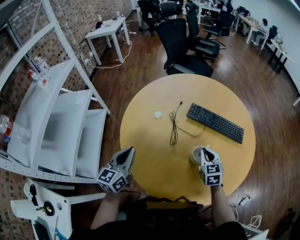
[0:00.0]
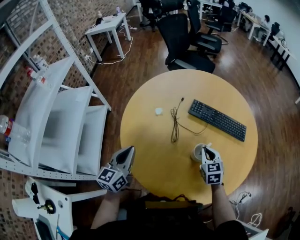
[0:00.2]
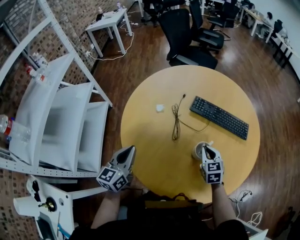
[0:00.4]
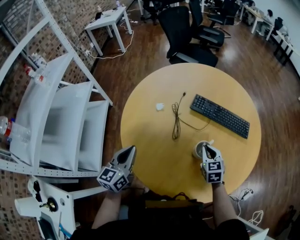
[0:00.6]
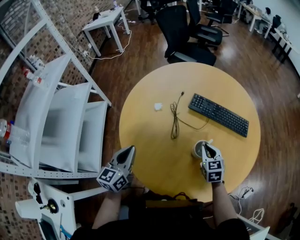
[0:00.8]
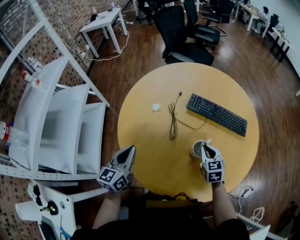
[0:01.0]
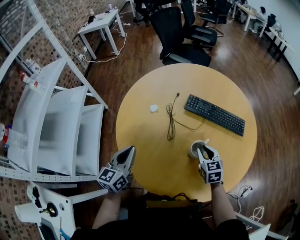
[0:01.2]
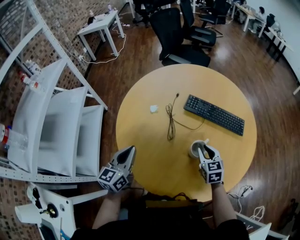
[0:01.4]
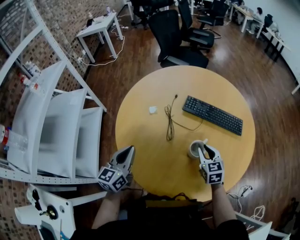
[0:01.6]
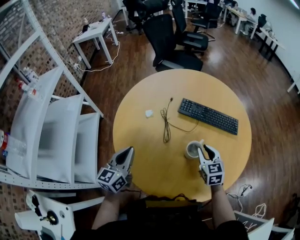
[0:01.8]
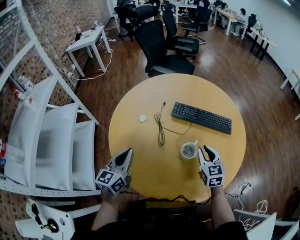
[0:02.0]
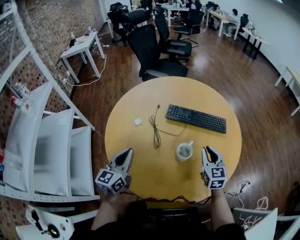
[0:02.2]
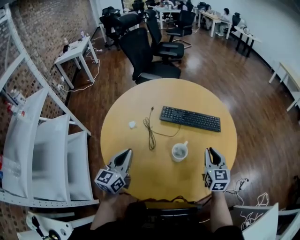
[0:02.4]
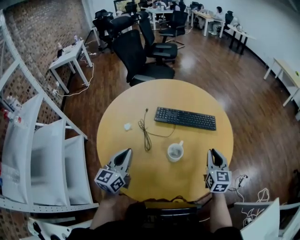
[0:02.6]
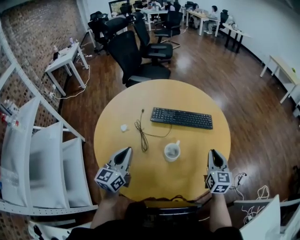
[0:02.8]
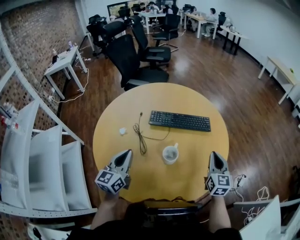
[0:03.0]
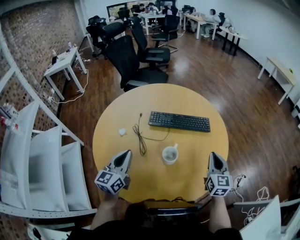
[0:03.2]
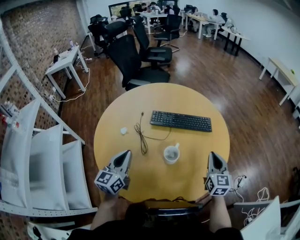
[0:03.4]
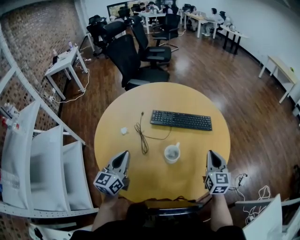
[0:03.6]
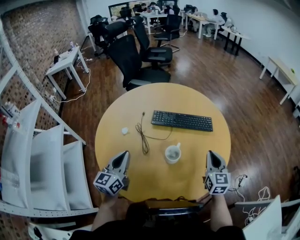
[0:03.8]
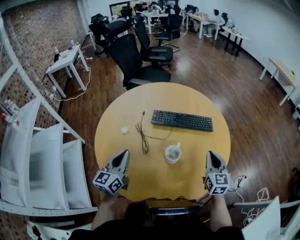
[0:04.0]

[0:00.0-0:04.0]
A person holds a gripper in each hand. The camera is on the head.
0:00.0 to 0:01.4: The right gripper opens up.
0:01.4 to 0:02.6: The left gripper goes about 5 cm to the right, while the right gripper travels to the right and upward by roughly 20 cm, and rotates roughly 30 degrees.
0:02.6 to 0:04.0: There are only small adjustments of the grippers.

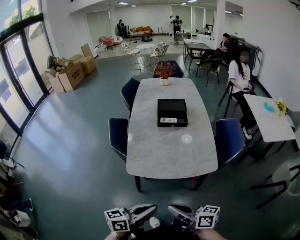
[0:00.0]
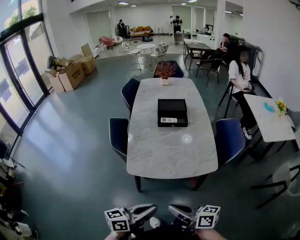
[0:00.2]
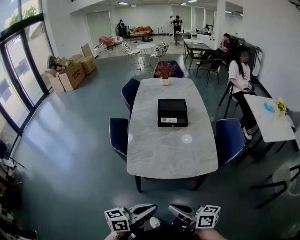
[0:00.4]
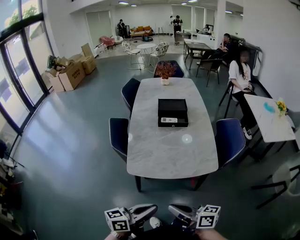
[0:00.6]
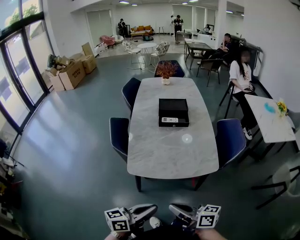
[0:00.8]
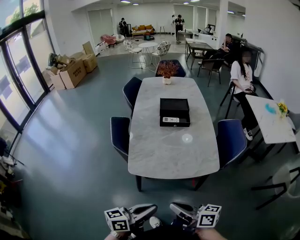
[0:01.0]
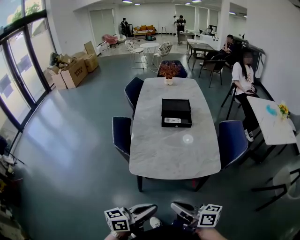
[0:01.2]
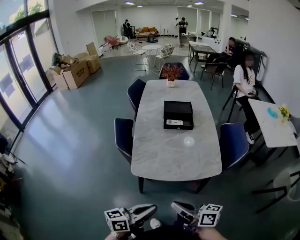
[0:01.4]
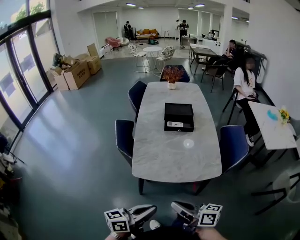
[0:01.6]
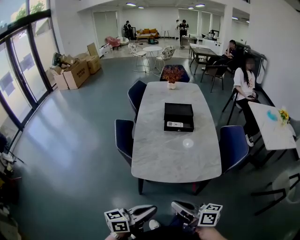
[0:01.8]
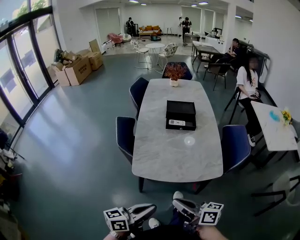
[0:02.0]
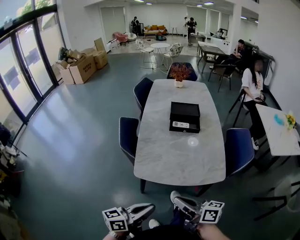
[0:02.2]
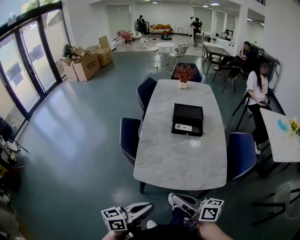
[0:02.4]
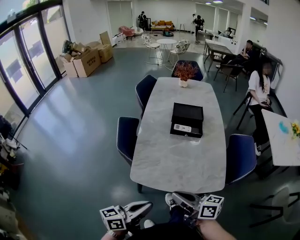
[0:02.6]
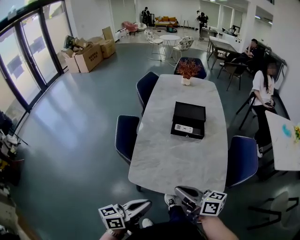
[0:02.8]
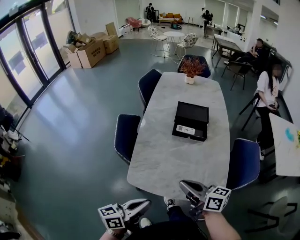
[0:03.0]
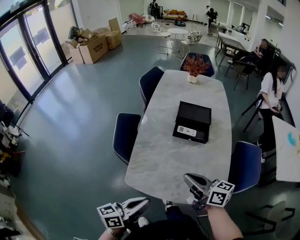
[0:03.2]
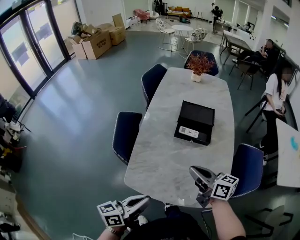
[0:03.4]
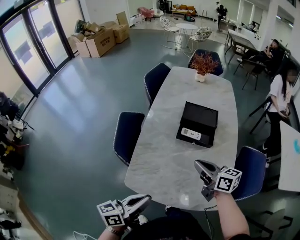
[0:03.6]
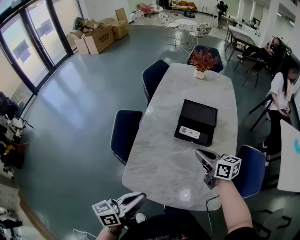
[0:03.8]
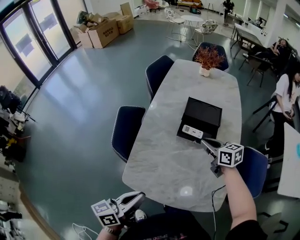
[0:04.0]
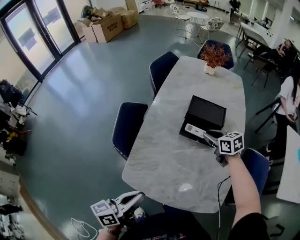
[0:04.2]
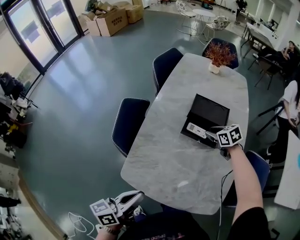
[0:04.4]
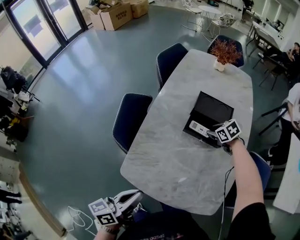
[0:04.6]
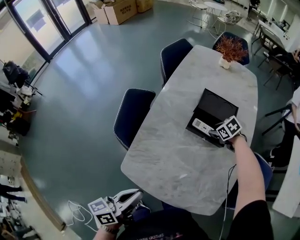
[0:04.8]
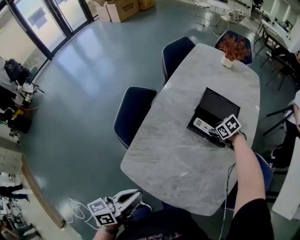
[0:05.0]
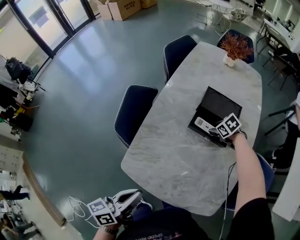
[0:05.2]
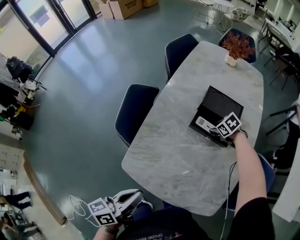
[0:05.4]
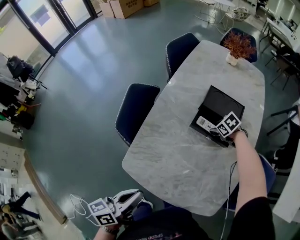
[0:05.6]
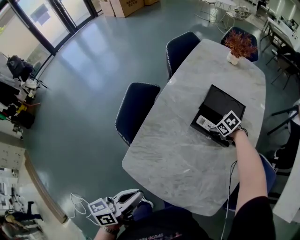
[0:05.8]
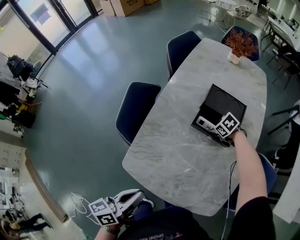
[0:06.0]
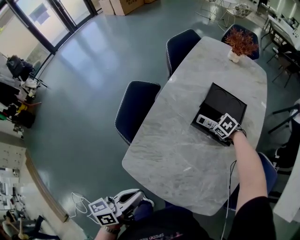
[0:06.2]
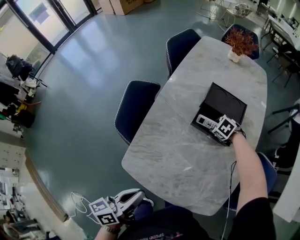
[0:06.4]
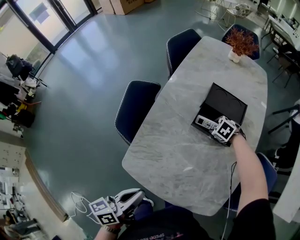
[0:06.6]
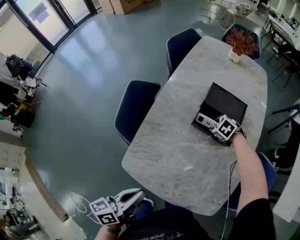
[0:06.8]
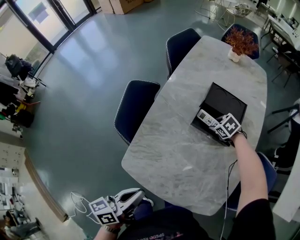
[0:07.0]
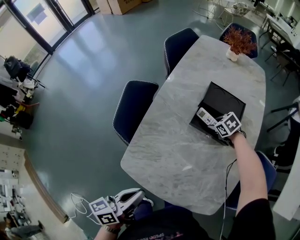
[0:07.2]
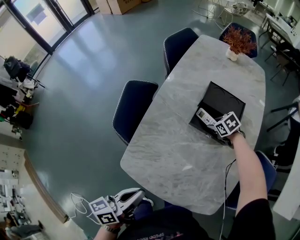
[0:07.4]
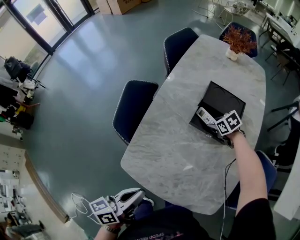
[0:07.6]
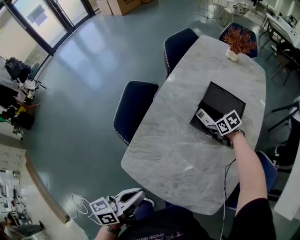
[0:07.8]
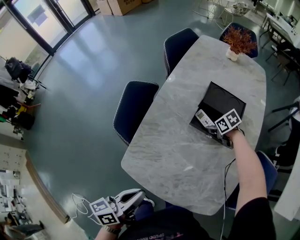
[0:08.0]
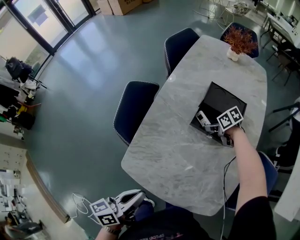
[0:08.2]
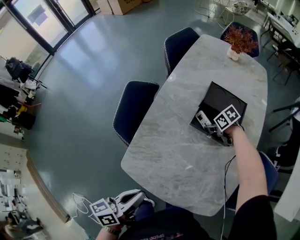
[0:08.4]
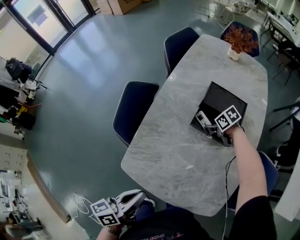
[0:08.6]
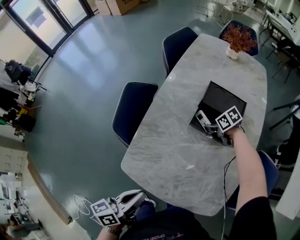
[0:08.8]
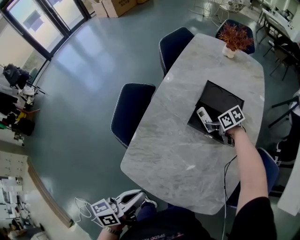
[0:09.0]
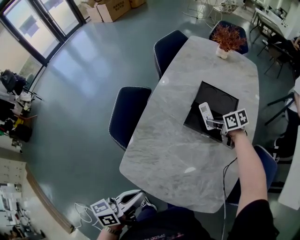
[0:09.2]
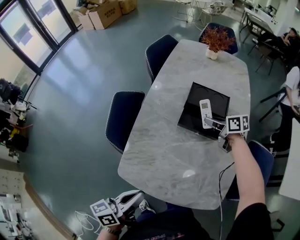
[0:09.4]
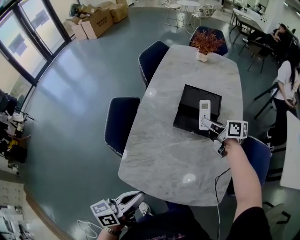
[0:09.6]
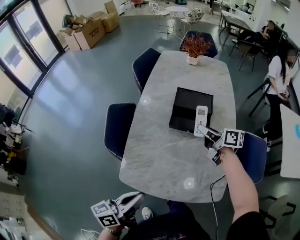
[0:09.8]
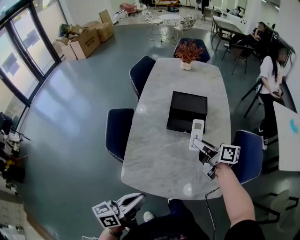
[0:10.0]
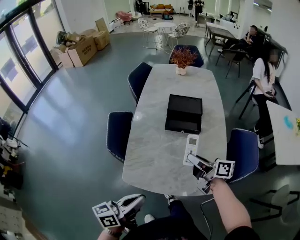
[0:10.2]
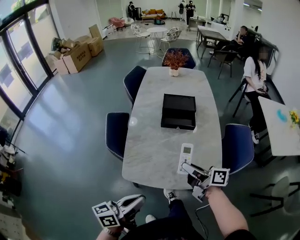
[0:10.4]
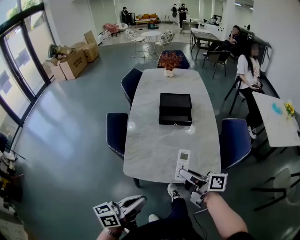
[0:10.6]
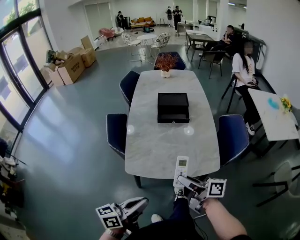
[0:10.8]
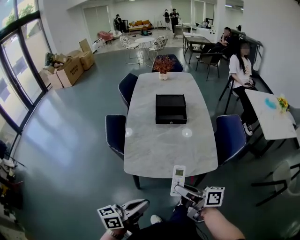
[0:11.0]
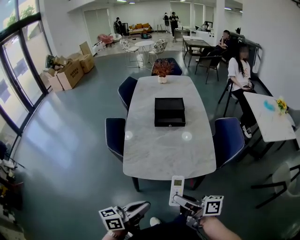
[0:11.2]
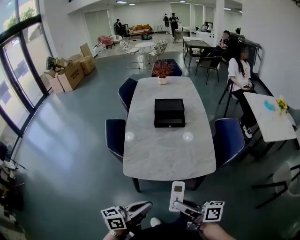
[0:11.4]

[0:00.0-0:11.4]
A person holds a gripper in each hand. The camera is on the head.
0:00.0 to 0:01.4: There are only small adjustments of the grippers.
0:01.4 to 0:02.8: Both grippers move forward, roughly 15 cm.
0:02.8 to 0:04.2: The left gripper is displaced forward by approximately 10 cm. Meanwhile the right gripper shifts roughly 40 cm forward and to the right, and tips its fingers downward by roughly 30 degrees.
0:04.2 to 0:05.6: The right gripper shifts roughly 15 cm downward, points its fingers roughly 30 degrees further downward, and opens up.
0:07.2 to 0:08.6: The right gripper changes its angle by about 20 degrees.
0:08.6 to 0:10.0: The left gripper shifts by approximately 5 cm, and swivels some 20 degrees; the right gripper shifts roughly 25 cm upward, and tilts its fingers approximately 50 degrees upward.
0:10.0 to 0:11.4: The right gripper moves backward, some 40 cm. The left gripper is displaced backward by approximately 20 cm.

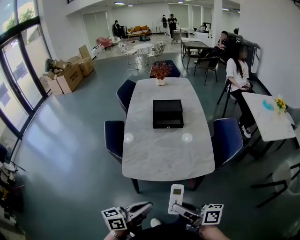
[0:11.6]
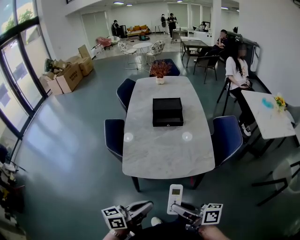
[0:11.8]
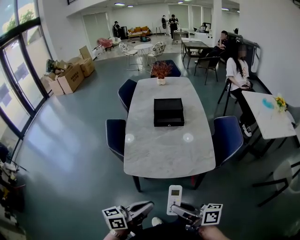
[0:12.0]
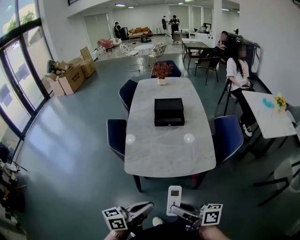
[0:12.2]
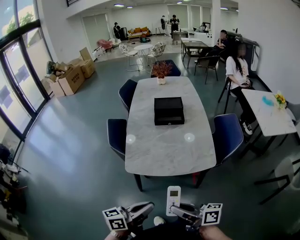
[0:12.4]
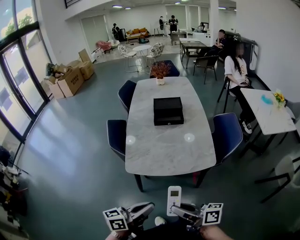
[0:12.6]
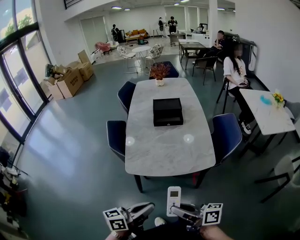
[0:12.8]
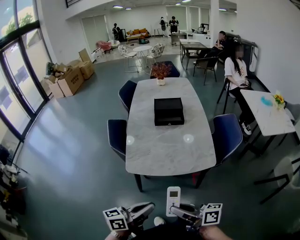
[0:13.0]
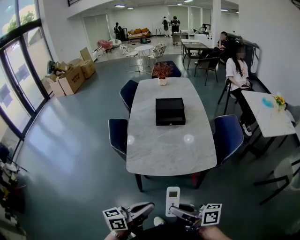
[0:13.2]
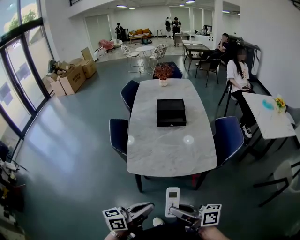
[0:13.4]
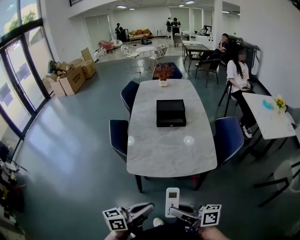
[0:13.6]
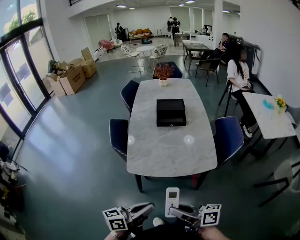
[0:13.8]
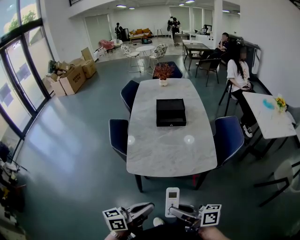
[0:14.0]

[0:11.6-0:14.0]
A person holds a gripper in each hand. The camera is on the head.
0:11.6 to 0:14.0: The grippers move only a little.

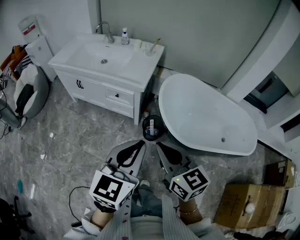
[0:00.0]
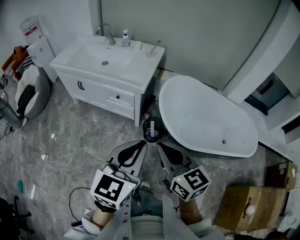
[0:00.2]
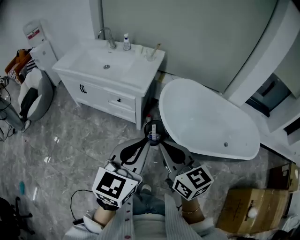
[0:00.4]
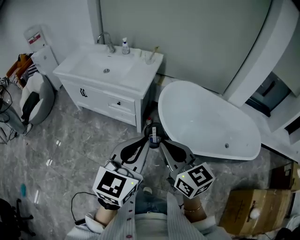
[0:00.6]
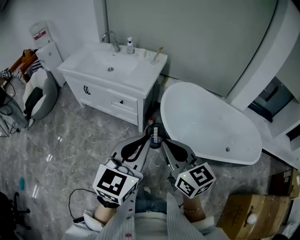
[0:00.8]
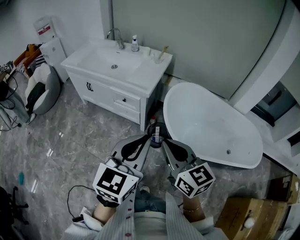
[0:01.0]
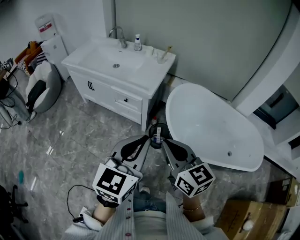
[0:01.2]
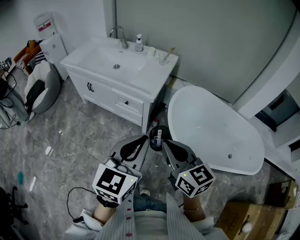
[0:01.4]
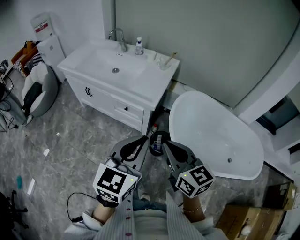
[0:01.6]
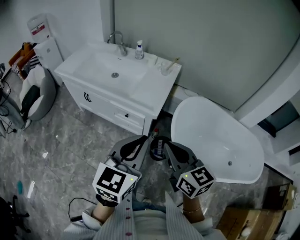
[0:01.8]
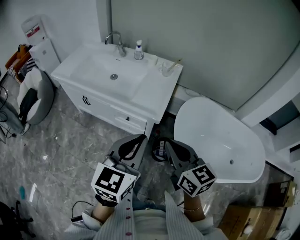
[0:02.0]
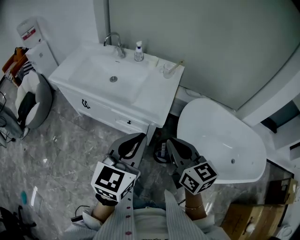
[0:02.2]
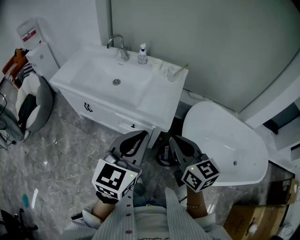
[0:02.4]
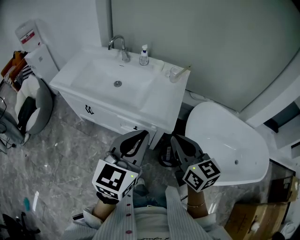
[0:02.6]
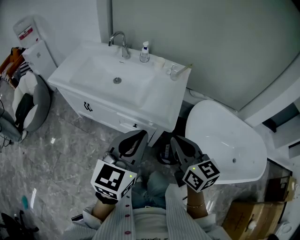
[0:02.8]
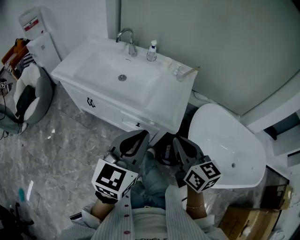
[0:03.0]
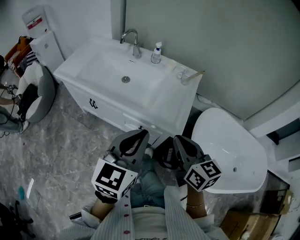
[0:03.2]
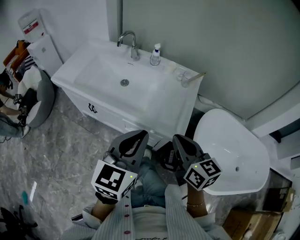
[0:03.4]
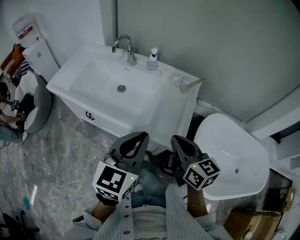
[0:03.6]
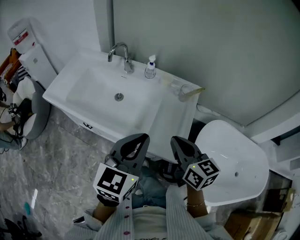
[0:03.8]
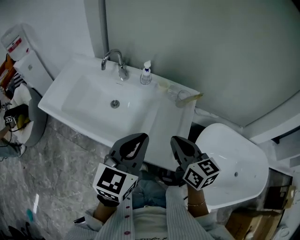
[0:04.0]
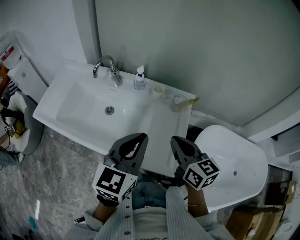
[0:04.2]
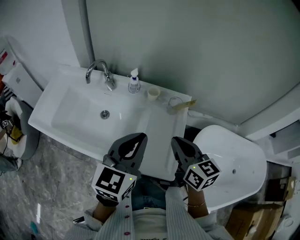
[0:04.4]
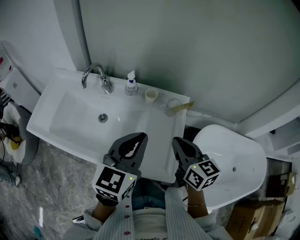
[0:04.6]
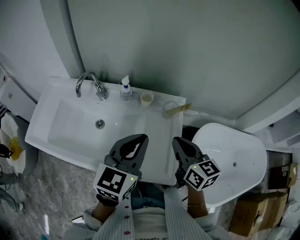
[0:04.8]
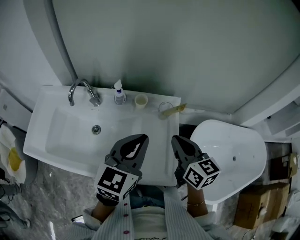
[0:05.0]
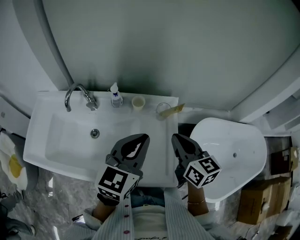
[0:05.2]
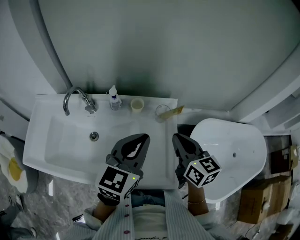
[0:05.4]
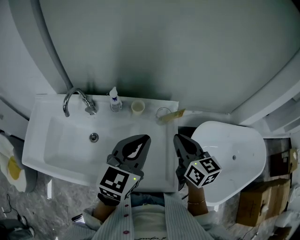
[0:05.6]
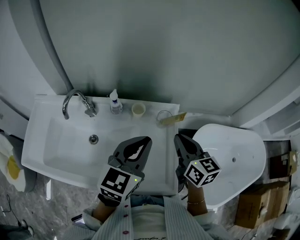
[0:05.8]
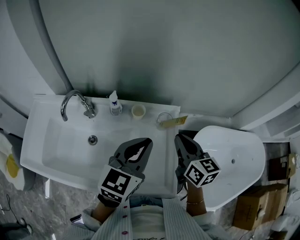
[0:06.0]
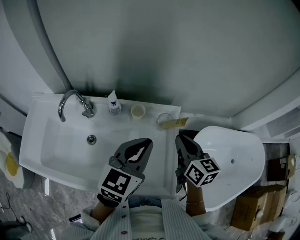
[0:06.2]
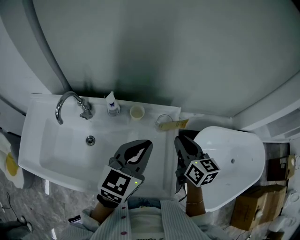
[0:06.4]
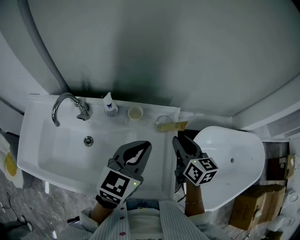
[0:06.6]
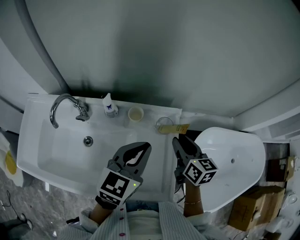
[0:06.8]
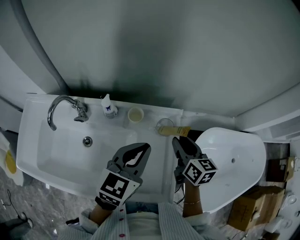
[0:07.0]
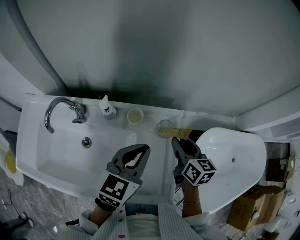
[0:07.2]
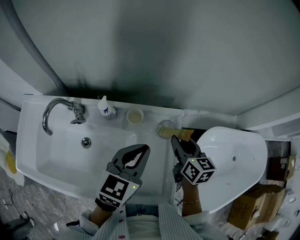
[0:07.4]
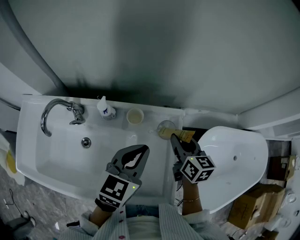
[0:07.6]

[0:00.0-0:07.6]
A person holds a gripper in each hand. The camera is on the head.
0:00.0 to 0:01.6: The two grippers go about 10 cm forward.
0:01.6 to 0:03.0: Both grippers move forward and to the left, approximately 25 cm.
0:03.0 to 0:04.6: The two grippers go approximately 30 cm forward.
0:04.6 to 0:06.0: Both grippers move forward, some 10 cm.
0:06.0 to 0:07.6: The two grippers go roughly 10 cm downward and forward. The right gripper opens.
